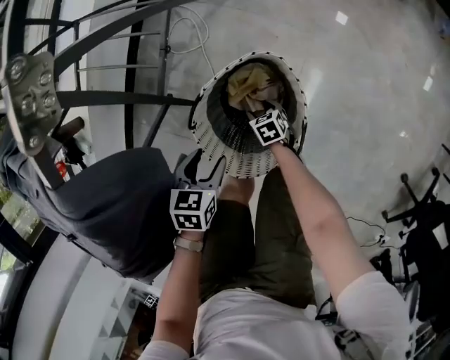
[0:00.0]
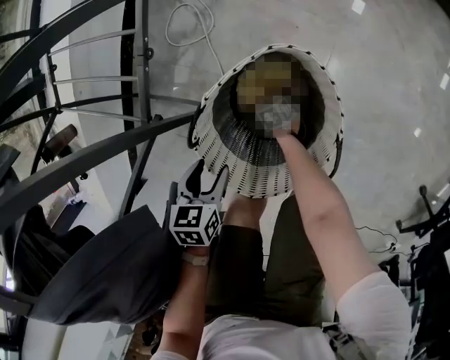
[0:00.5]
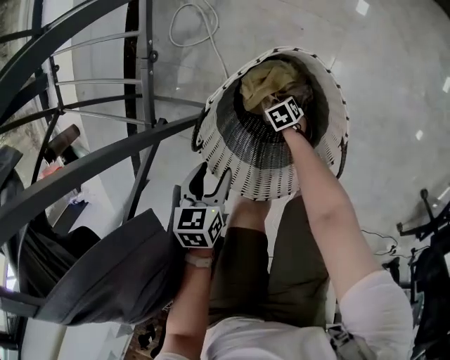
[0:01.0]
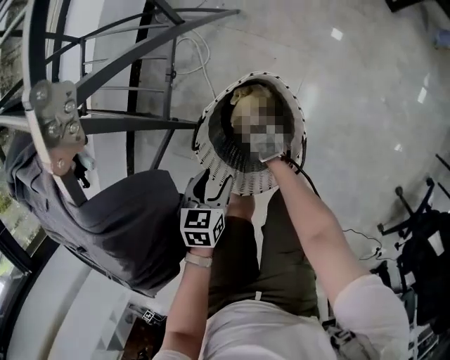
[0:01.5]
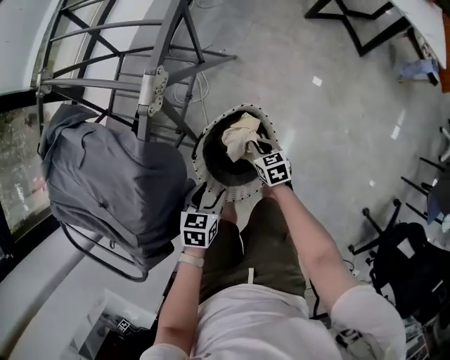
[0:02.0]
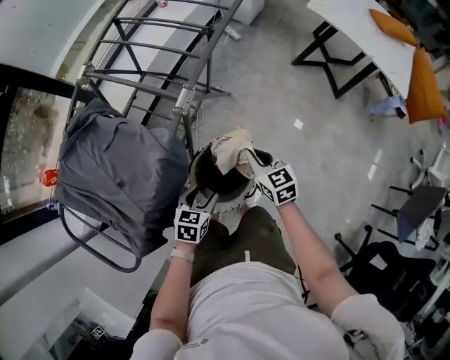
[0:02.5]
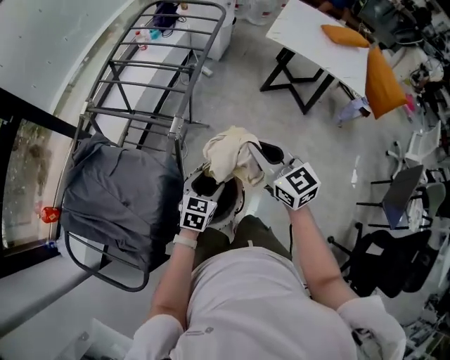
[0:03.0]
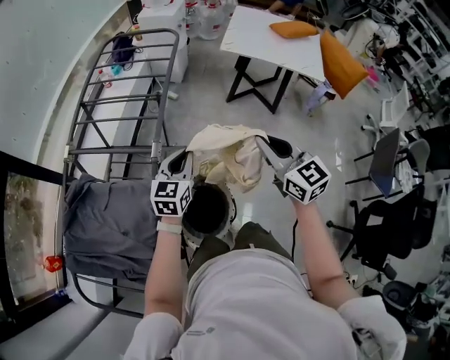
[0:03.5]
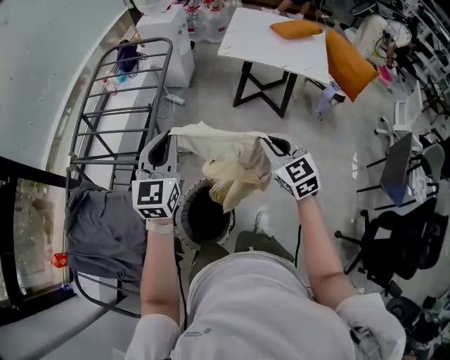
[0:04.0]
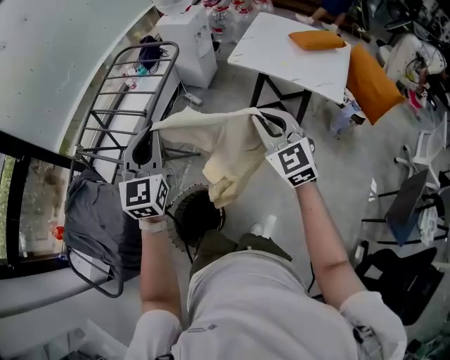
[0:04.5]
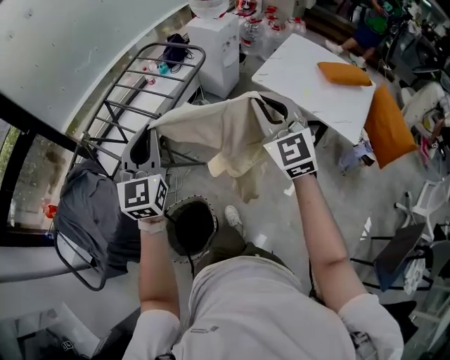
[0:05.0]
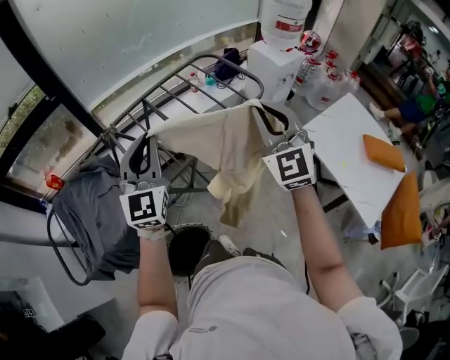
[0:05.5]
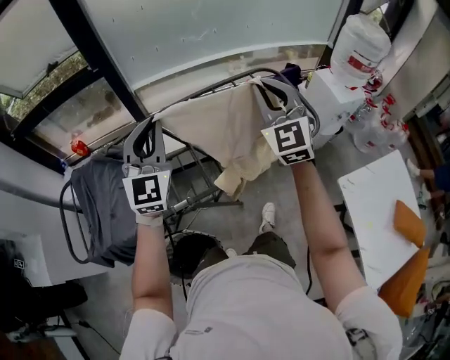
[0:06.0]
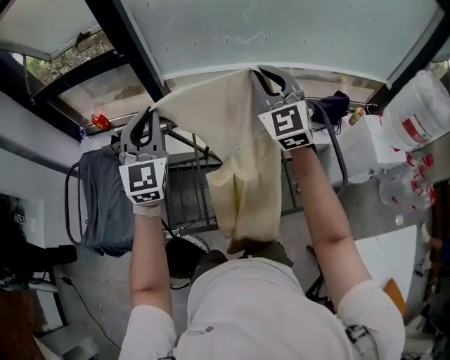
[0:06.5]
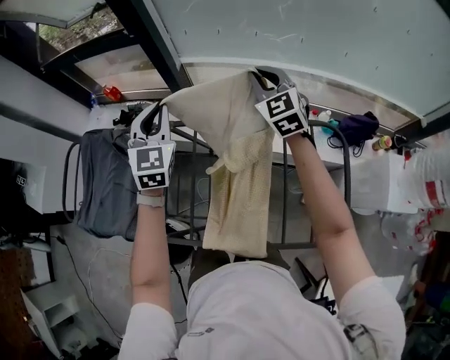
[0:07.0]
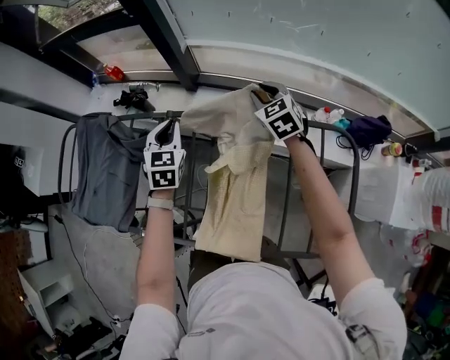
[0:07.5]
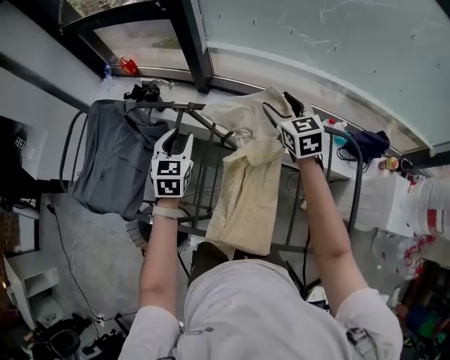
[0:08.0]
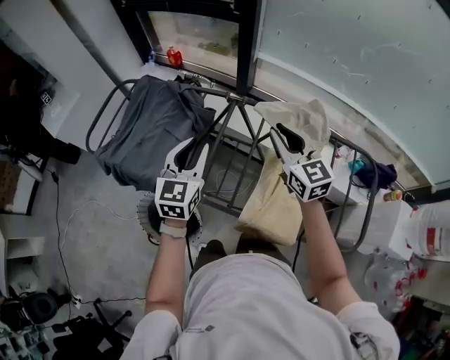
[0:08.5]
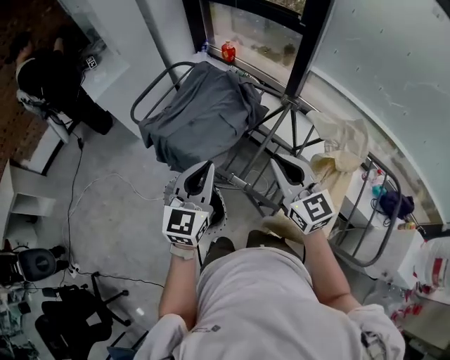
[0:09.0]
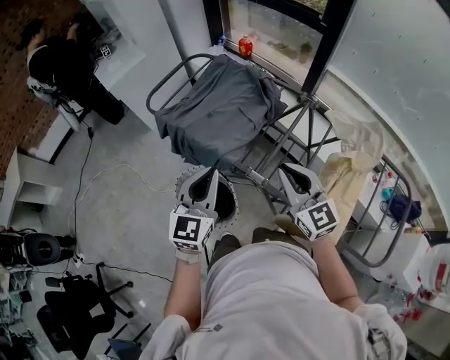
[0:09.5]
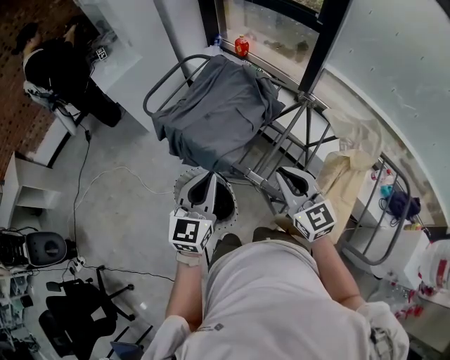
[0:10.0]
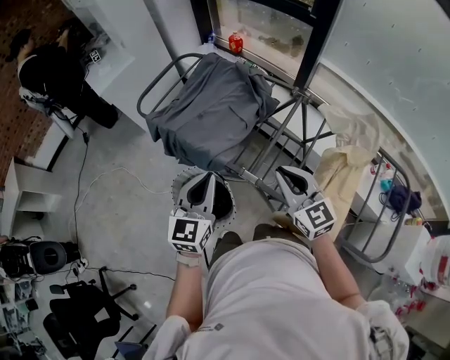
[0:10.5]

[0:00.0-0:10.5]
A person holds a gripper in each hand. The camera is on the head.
0:00.0 to 0:02.0: The left gripper is displaced upward by approximately 10 cm; the right gripper heads upward, covering approximately 25 cm, and closes its fingers.
0:02.0 to 0:04.0: The right gripper travels upward and to the right by roughly 60 cm, and swivels approximately 40 degrees. Meanwhile the left gripper travels upward and forward by approximately 50 cm, points its fingers about 50 degrees further upward, and closes its fingers.
0:04.0 to 0:06.5: The pair of grippers is taken approximately 60 cm. The right gripper turns by about 80 degrees. The left gripper rotates approximately 90 degrees.
0:06.5 to 0:08.5: The right gripper moves about 20 cm, turns by some 50 degrees, and opens and closes again, while the left gripper ends up some 20 cm from where it was, swivels approximately 30 degrees, and opens up.
0:08.5 to 0:10.5: The grippers both shift to the left and backward by some 25 cm. The left gripper closes.

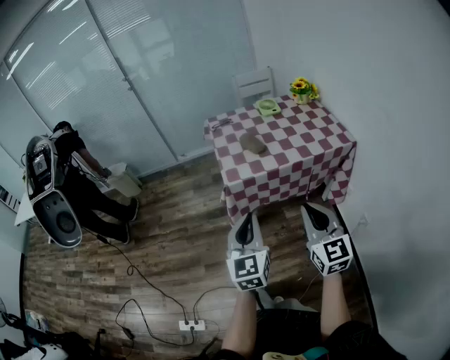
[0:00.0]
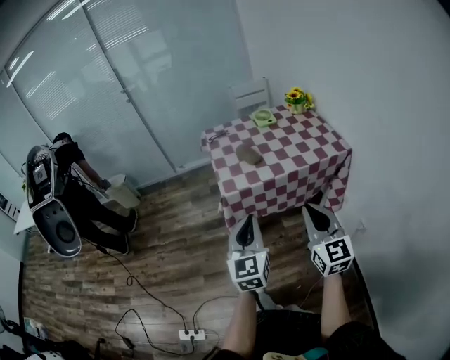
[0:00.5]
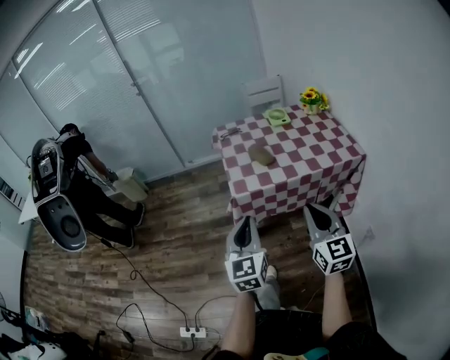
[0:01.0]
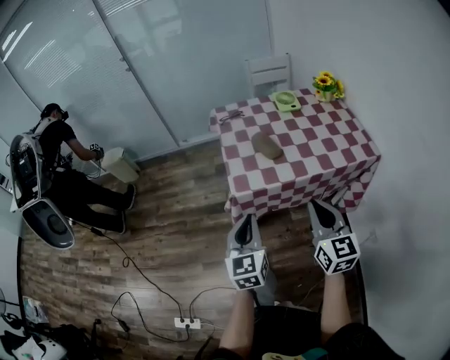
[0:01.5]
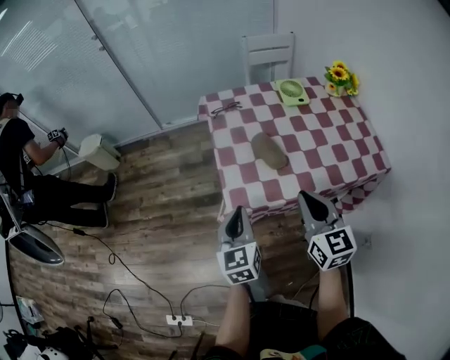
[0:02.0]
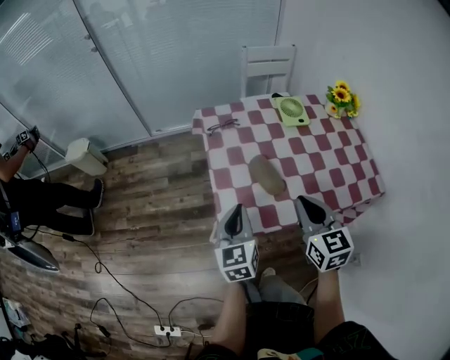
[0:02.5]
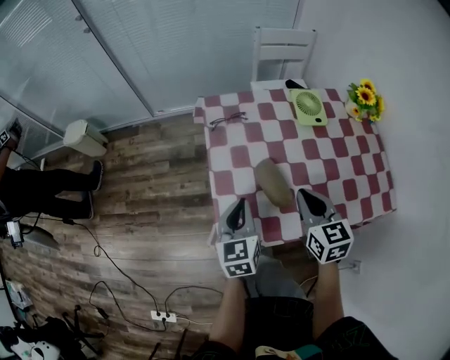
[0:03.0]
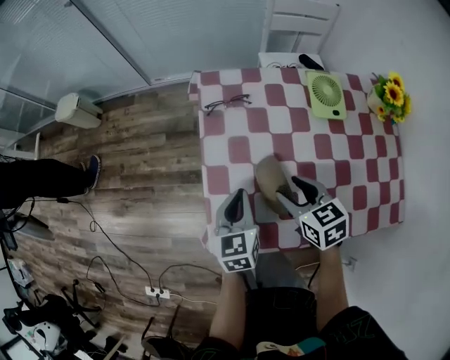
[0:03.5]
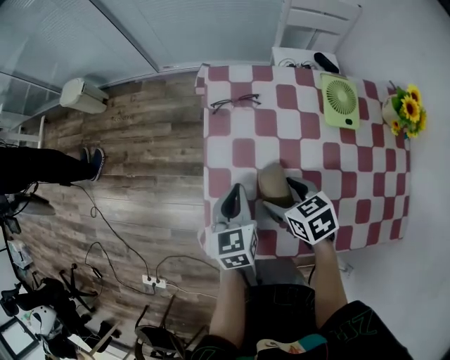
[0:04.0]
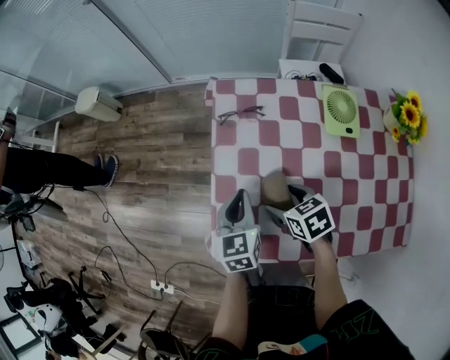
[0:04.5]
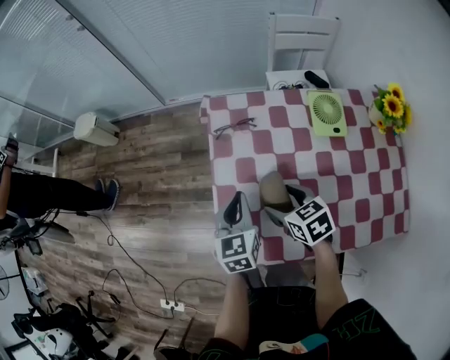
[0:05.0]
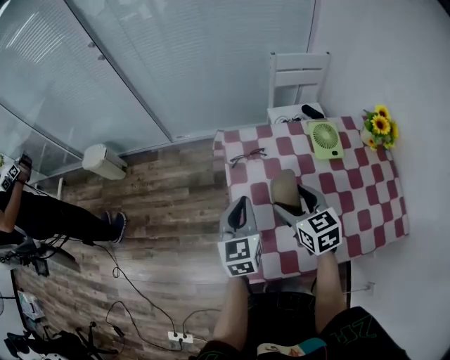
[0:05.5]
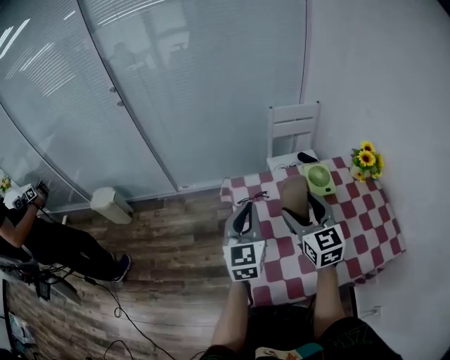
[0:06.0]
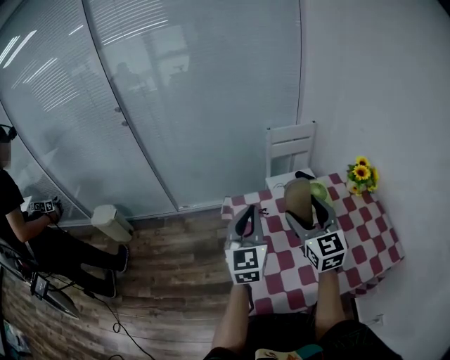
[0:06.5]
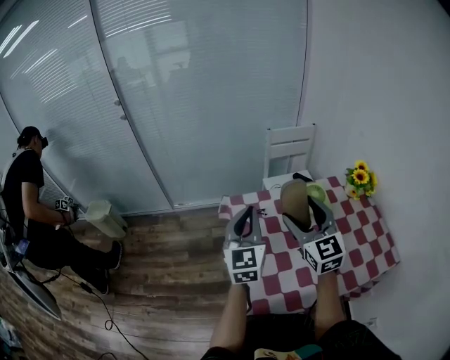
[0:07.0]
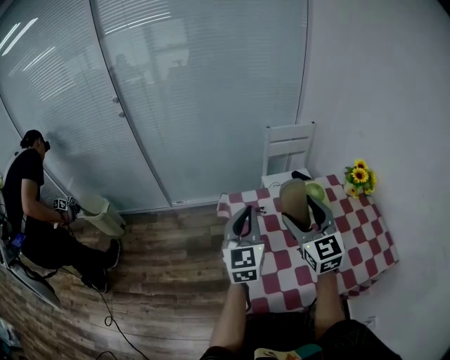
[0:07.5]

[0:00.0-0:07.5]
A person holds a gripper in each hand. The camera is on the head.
0:00.0 to 0:02.0: The right gripper goes about 30 cm forward, while the left gripper travels forward and downward by approximately 30 cm.
0:02.0 to 0:04.0: The left gripper moves some 25 cm. Meanwhile the right gripper changes place by approximately 30 cm, tilts its fingers about 40 degrees downward, and opens its fingers.
0:04.0 to 0:05.5: The grippers both shift upward and forward by roughly 15 cm. The right gripper changes its angle by roughly 30 degrees.
0:05.5 to 0:07.5: Both grippers travel together upward, about 15 cm. The right gripper swivels some 30 degrees; the left gripper swivels about 20 degrees.

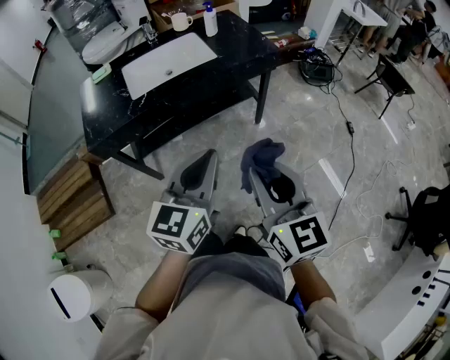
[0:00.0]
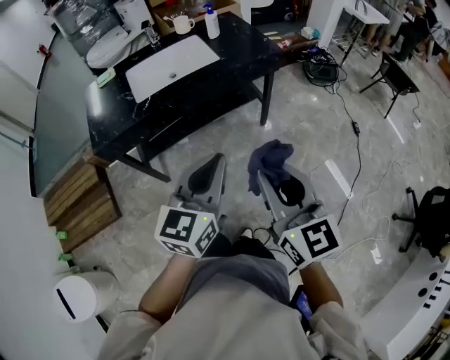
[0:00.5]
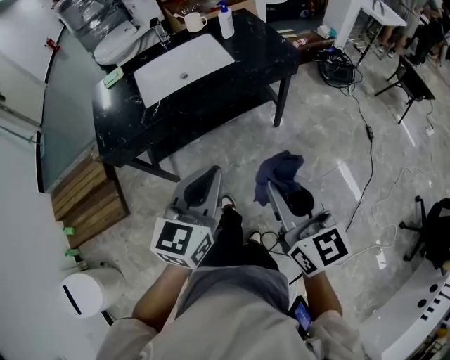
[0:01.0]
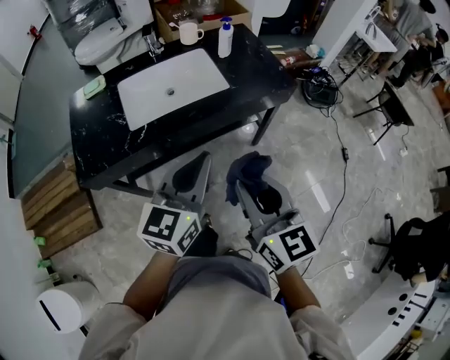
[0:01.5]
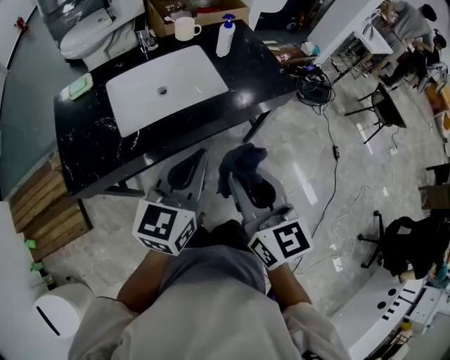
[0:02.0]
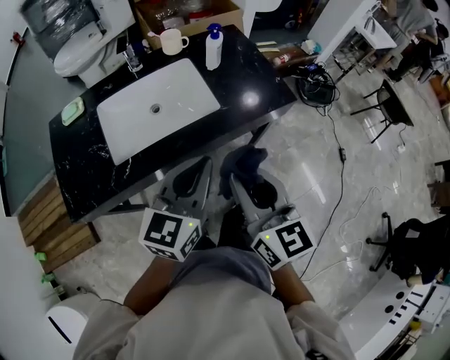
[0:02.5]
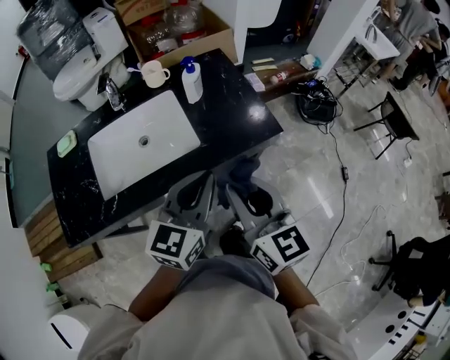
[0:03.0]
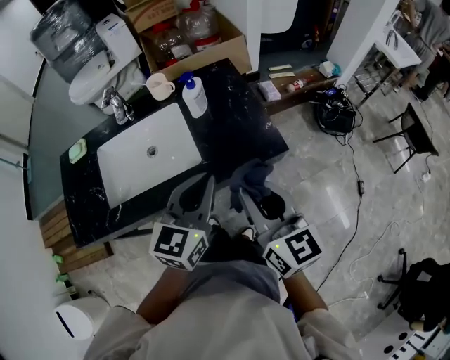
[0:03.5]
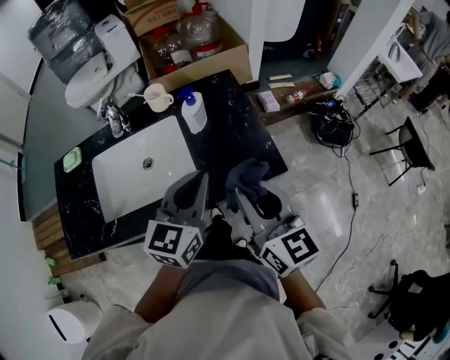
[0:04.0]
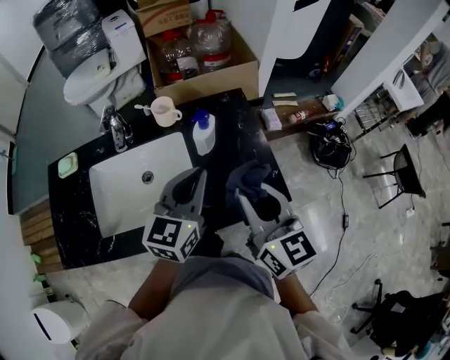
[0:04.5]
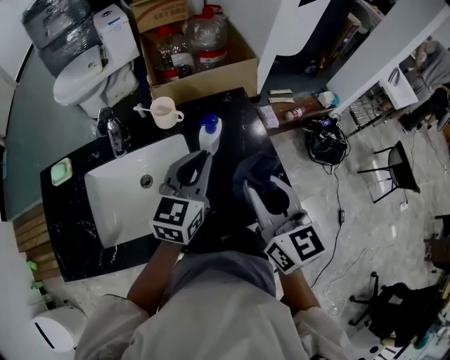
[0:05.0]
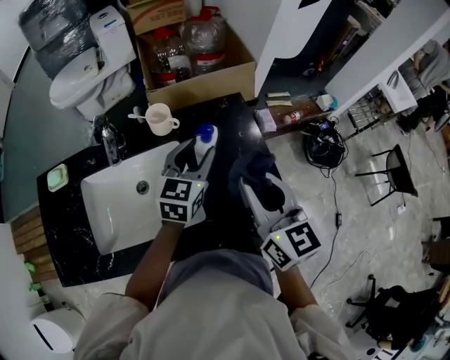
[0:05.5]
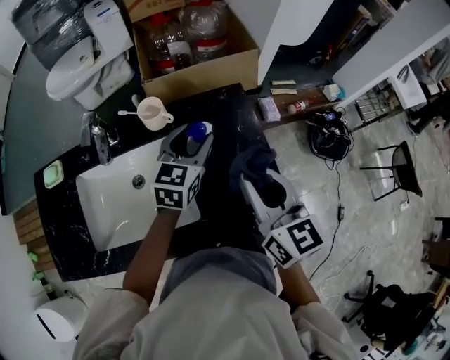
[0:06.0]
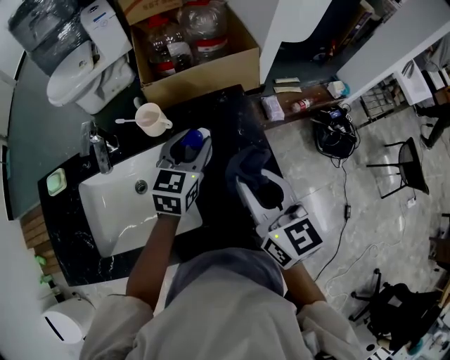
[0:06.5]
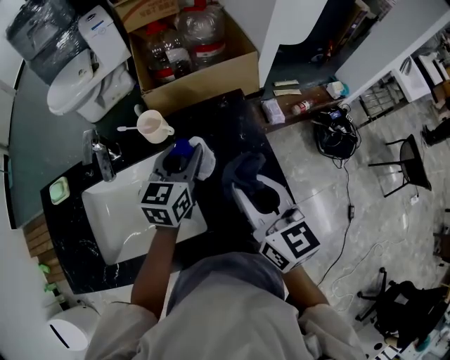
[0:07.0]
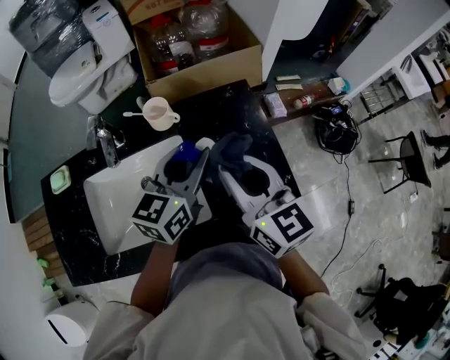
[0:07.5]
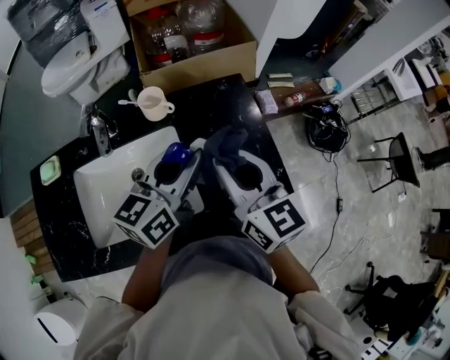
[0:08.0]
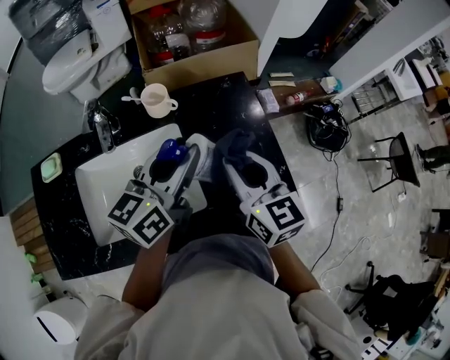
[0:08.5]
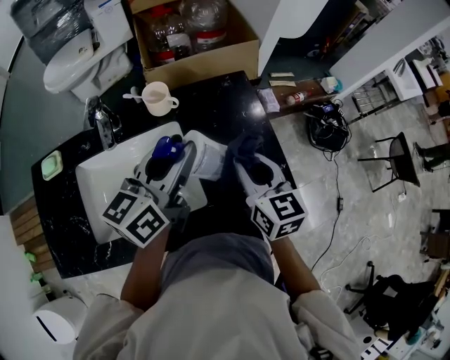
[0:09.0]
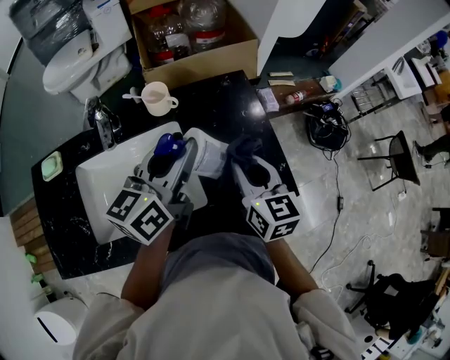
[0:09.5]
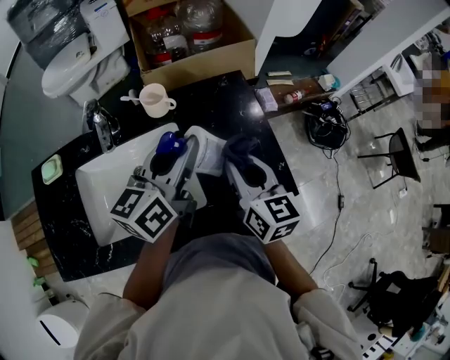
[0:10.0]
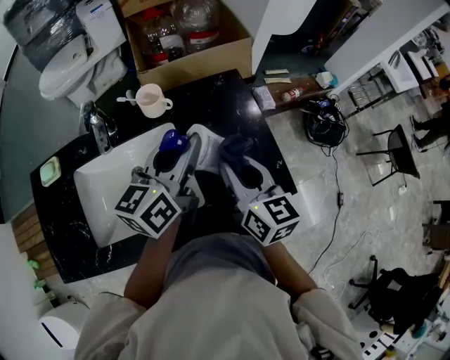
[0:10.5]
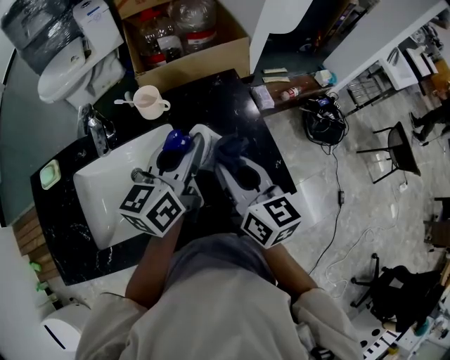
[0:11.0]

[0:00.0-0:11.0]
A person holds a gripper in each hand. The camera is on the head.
0:00.0 to 0:02.0: The left gripper heads forward, covering about 25 cm; the right gripper shifts approximately 25 cm forward and to the left.
0:02.0 to 0:03.5: The two grippers go roughly 30 cm forward and to the right.
0:03.5 to 0:05.5: The two grippers go some 25 cm forward. The left gripper opens.
0:05.5 to 0:07.5: The right gripper moves about 5 cm.
0:07.5 to 0:09.0: The right gripper shifts roughly 10 cm downward. The left gripper ends up about 5 cm from where it was.
0:09.0 to 0:11.0: The grippers make only small movements.
